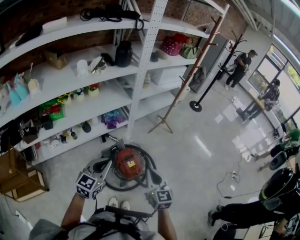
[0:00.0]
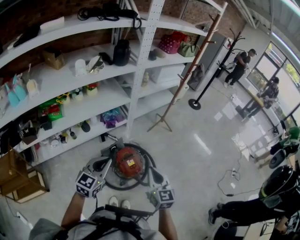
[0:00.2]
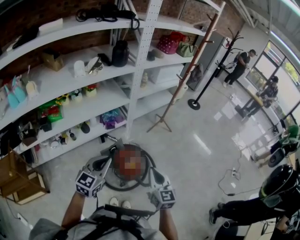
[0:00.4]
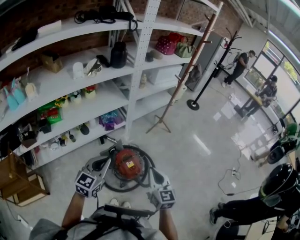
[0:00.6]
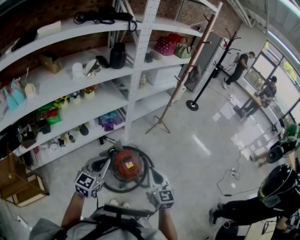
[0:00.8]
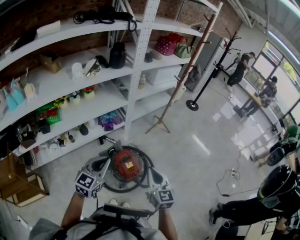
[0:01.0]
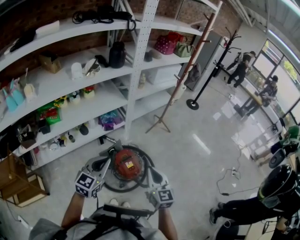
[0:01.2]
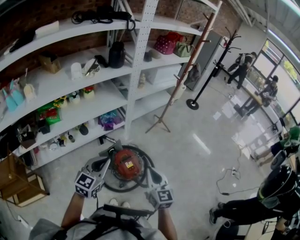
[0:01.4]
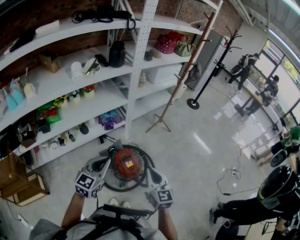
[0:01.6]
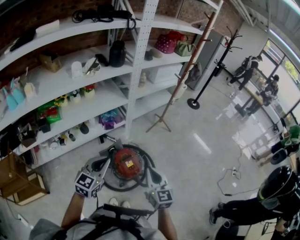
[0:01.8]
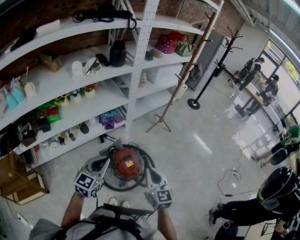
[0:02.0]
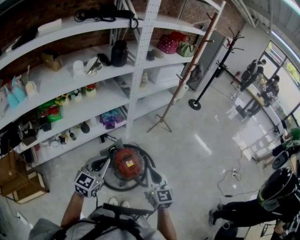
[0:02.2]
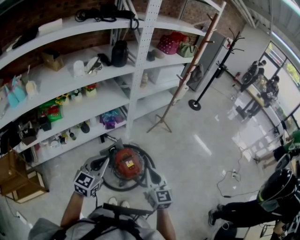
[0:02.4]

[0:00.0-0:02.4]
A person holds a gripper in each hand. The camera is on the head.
0:00.0 to 0:01.2: The grippers stay close to where they were, moving slightly.
0:01.2 to 0:02.4: Both grippers stay about where they are.

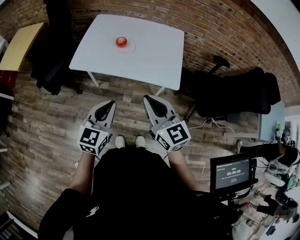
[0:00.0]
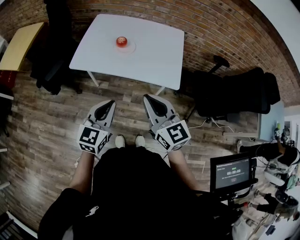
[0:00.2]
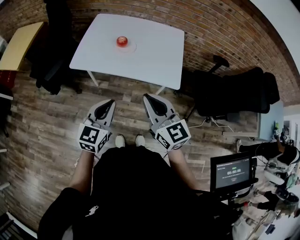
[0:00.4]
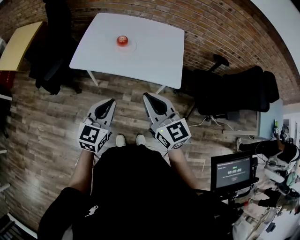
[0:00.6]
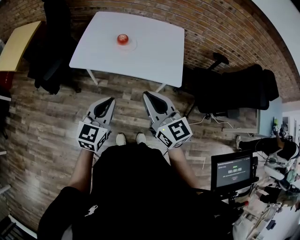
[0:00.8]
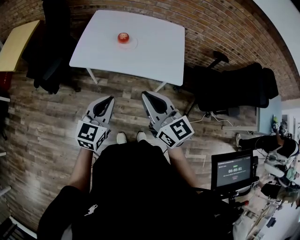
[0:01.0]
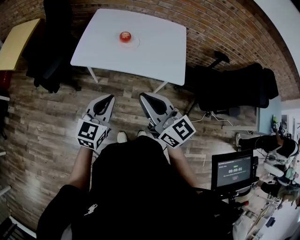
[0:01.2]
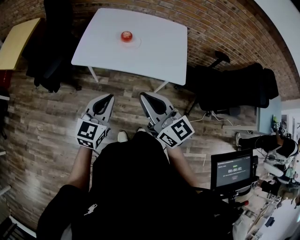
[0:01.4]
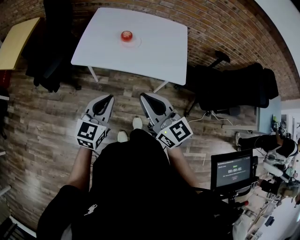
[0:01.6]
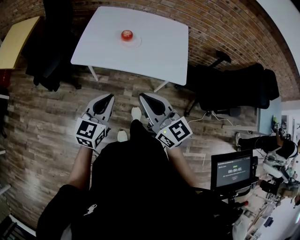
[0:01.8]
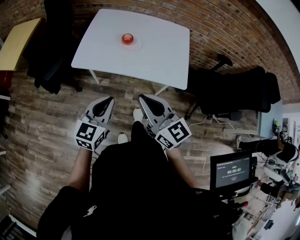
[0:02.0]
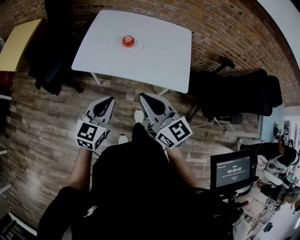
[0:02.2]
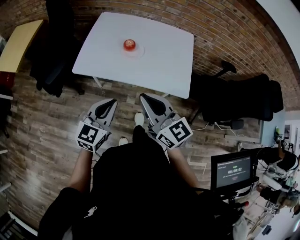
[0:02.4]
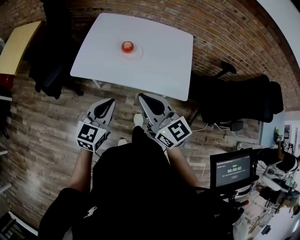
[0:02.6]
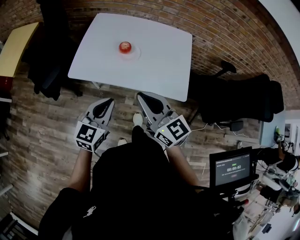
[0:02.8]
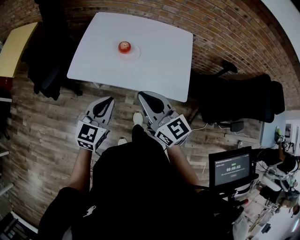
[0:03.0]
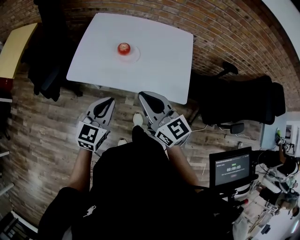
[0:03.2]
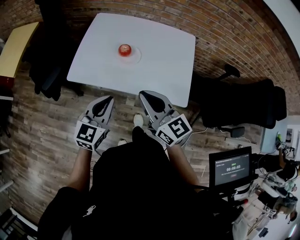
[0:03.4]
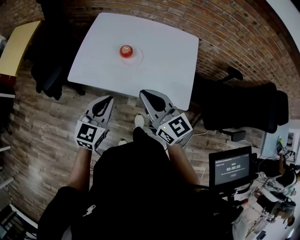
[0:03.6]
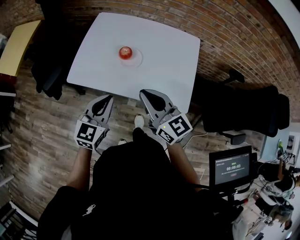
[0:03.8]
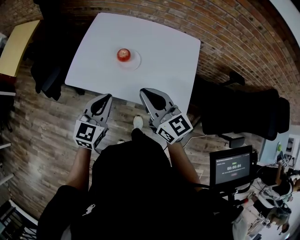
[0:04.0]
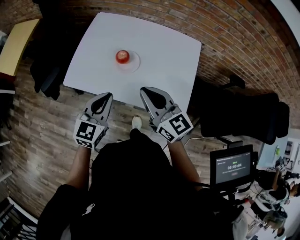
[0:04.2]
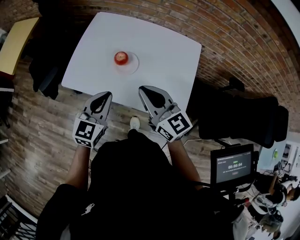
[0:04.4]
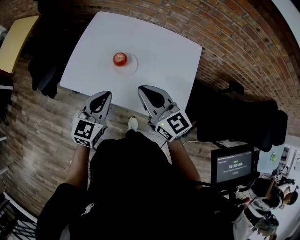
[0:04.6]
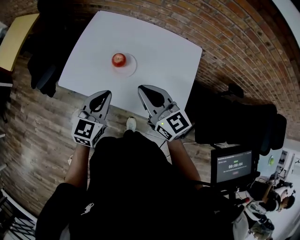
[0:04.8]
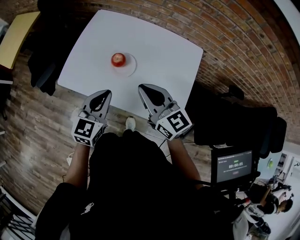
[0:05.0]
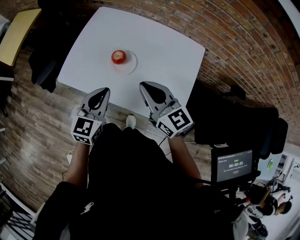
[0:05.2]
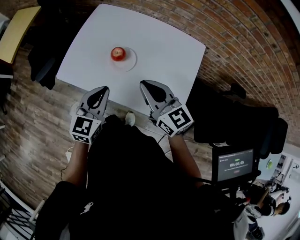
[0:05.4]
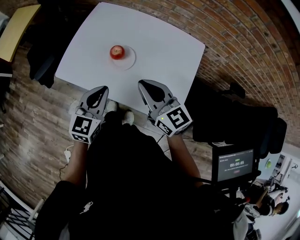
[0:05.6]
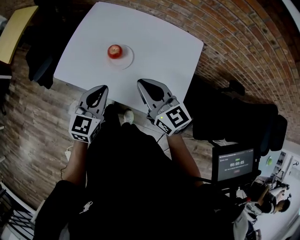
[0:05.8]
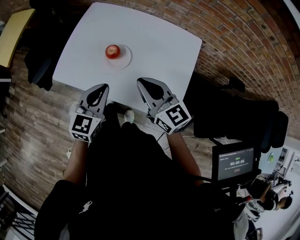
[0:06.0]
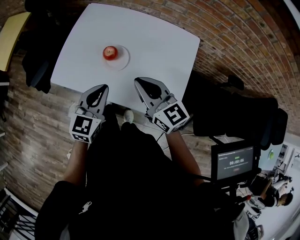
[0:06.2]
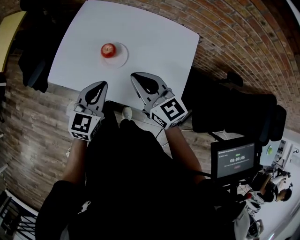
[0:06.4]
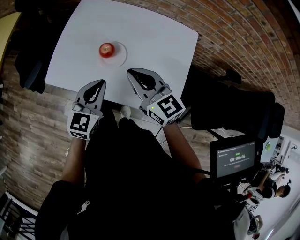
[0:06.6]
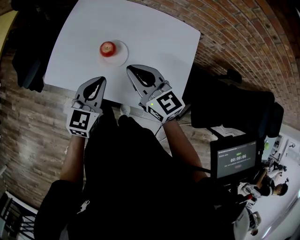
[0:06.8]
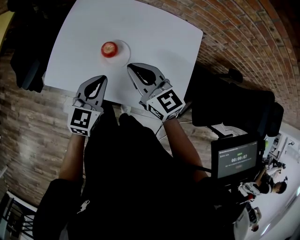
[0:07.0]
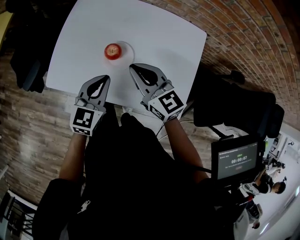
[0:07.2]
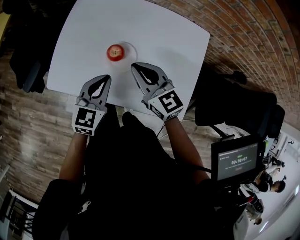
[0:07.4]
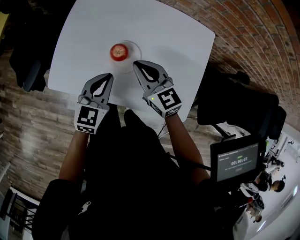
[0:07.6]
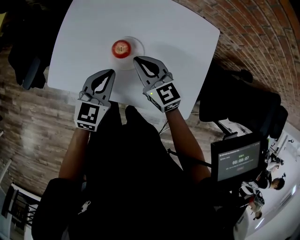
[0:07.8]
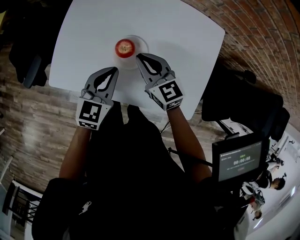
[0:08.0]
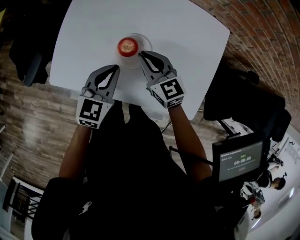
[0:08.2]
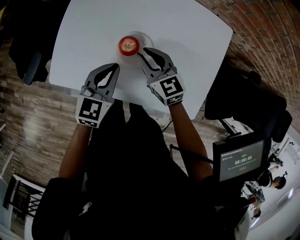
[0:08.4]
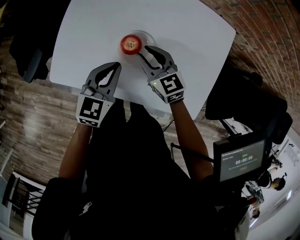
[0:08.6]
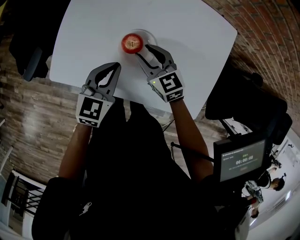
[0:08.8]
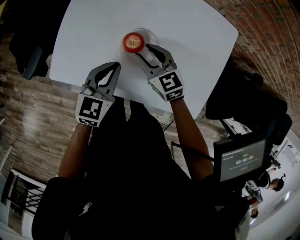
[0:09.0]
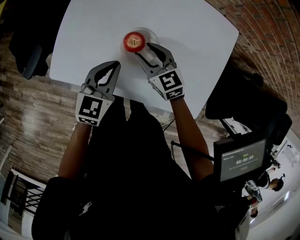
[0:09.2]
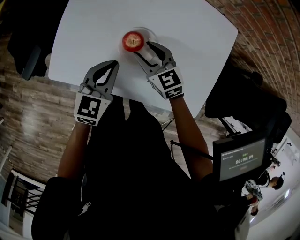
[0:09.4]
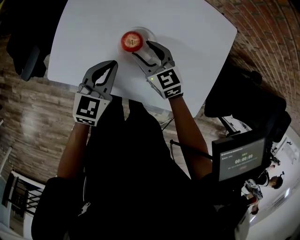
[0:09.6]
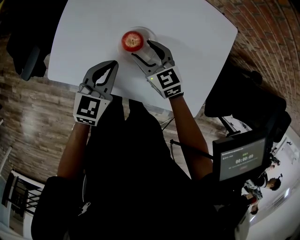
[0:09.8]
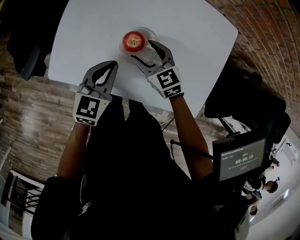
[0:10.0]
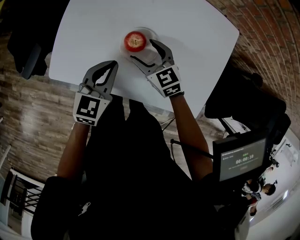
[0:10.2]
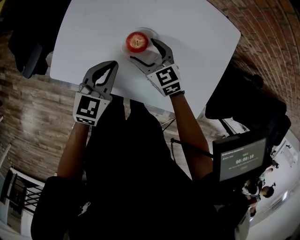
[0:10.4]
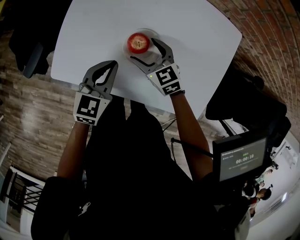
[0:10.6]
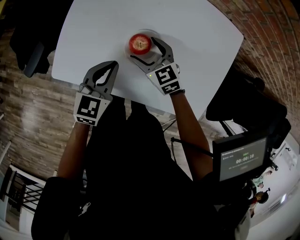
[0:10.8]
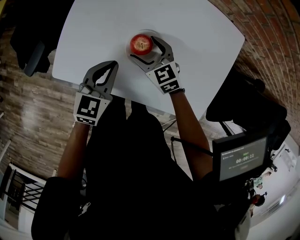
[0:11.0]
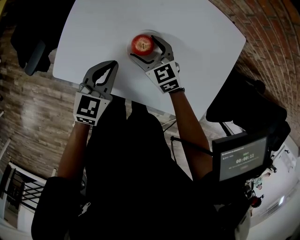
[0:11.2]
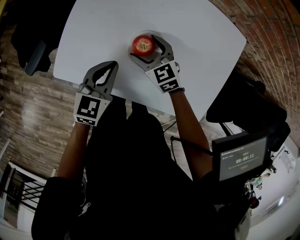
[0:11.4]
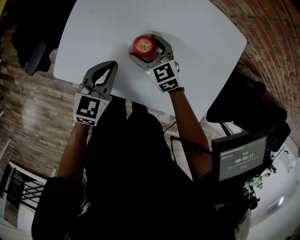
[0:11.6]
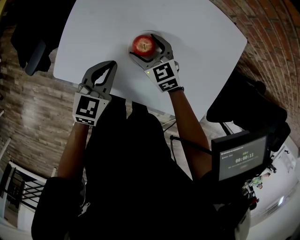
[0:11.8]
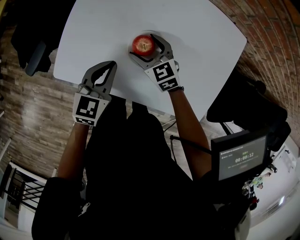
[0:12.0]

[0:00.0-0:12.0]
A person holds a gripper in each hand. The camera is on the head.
0:00.0 to 0:01.6: The two grippers go approximately 5 cm to the left.
0:01.6 to 0:03.0: Both grippers travel together forward, about 10 cm.
0:03.0 to 0:04.4: Both grippers travel together forward, approximately 10 cm.
0:04.4 to 0:06.0: The two grippers go some 10 cm to the right and forward.
0:06.0 to 0:07.6: The right gripper is displaced forward, downward and to the left by some 20 cm, while the left gripper goes approximately 15 cm forward and downward.
0:07.6 to 0:09.0: The left gripper shifts by some 5 cm, while the right gripper moves downward, roughly 10 cm, and opens.
0:09.0 to 0:10.4: The right gripper opens its fingers.
0:10.4 to 0:12.0: The grippers make only small movements.

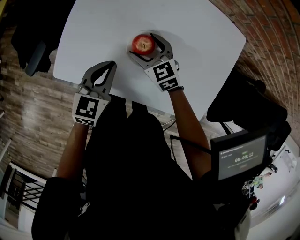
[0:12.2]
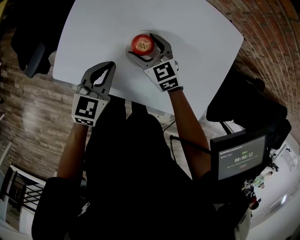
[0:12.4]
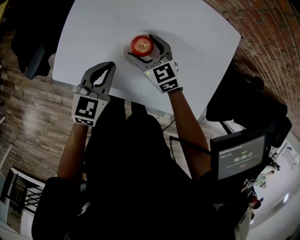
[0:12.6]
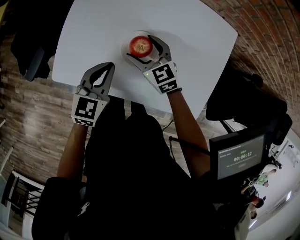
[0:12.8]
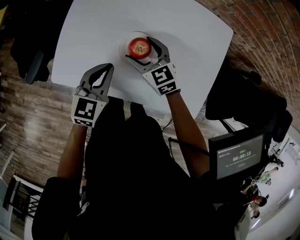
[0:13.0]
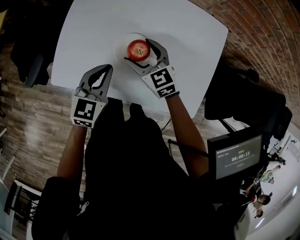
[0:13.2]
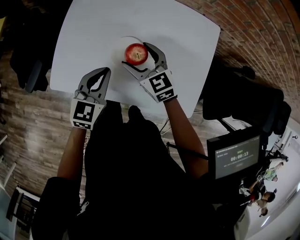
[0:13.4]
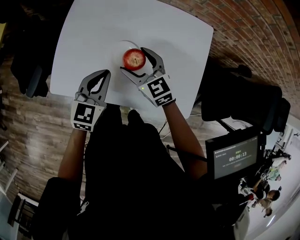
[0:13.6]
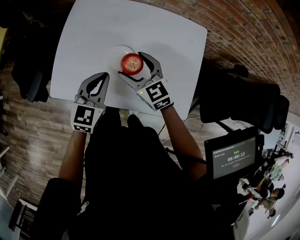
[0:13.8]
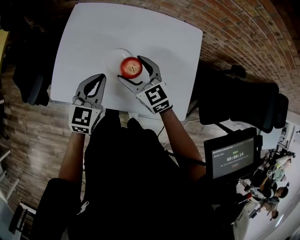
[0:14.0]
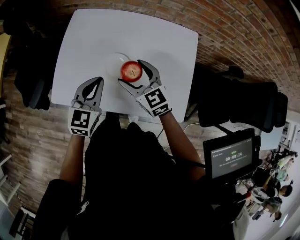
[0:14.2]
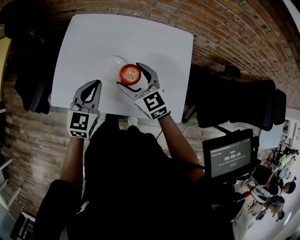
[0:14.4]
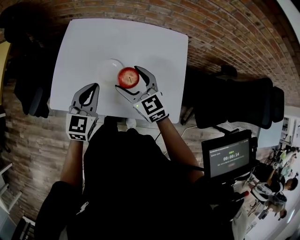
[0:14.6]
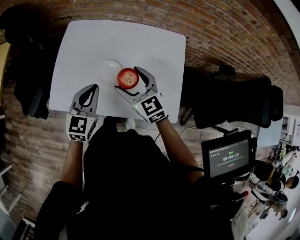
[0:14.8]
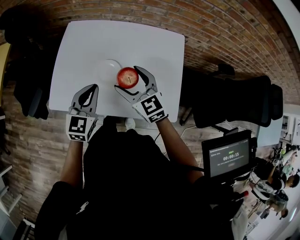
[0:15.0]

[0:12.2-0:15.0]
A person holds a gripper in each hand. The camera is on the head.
0:12.2 to 0:13.6: The right gripper is displaced upward by roughly 10 cm. The left gripper travels upward and to the right by approximately 10 cm.
0:13.6 to 0:15.0: The right gripper goes some 10 cm upward, backward and to the right. Meanwhile the left gripper travels upward by roughly 5 cm.

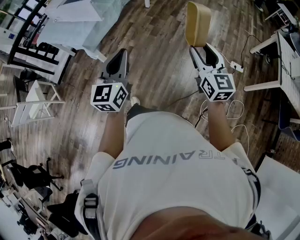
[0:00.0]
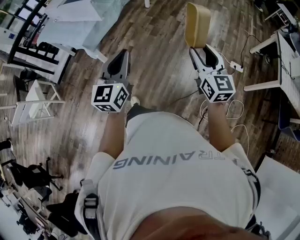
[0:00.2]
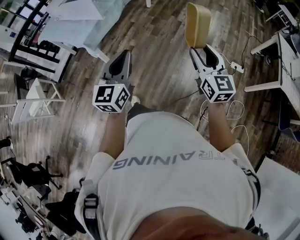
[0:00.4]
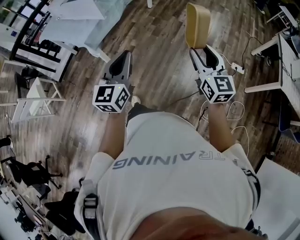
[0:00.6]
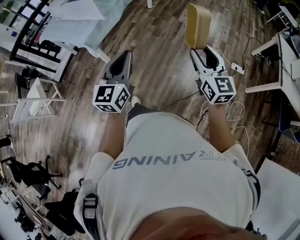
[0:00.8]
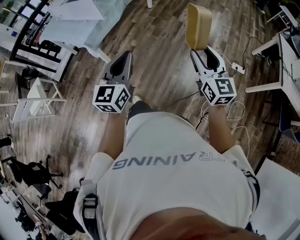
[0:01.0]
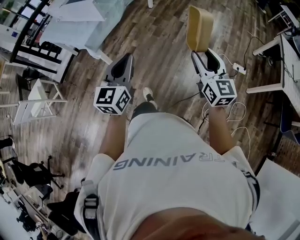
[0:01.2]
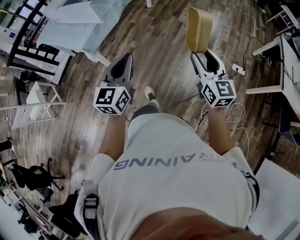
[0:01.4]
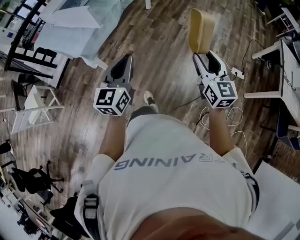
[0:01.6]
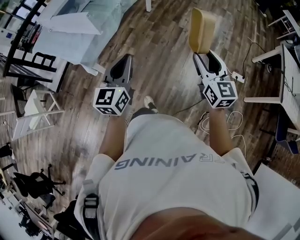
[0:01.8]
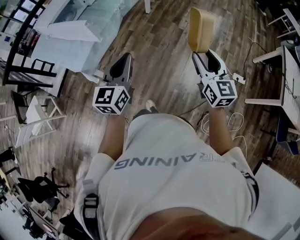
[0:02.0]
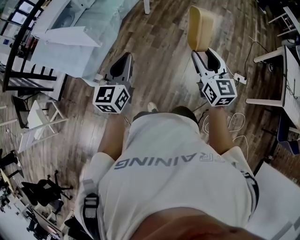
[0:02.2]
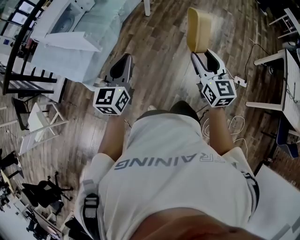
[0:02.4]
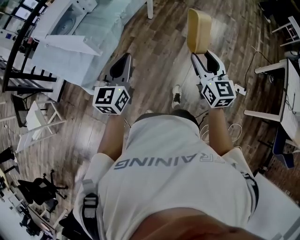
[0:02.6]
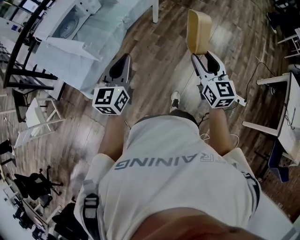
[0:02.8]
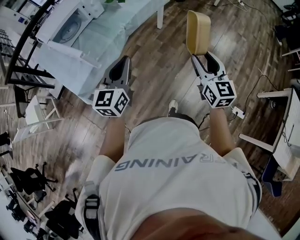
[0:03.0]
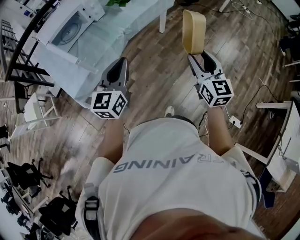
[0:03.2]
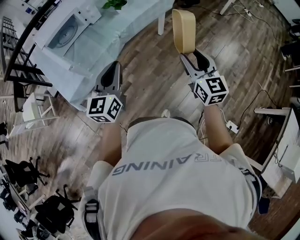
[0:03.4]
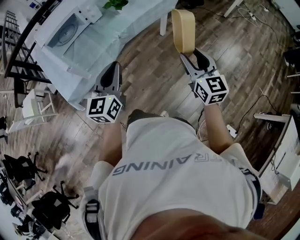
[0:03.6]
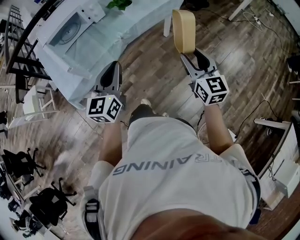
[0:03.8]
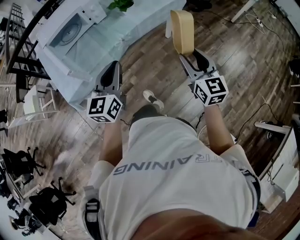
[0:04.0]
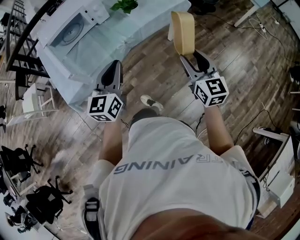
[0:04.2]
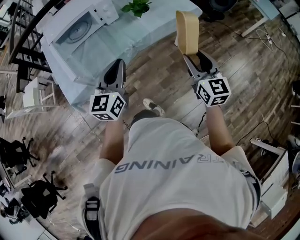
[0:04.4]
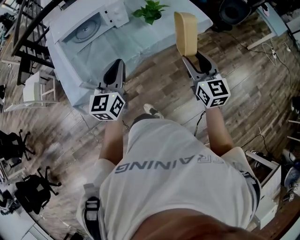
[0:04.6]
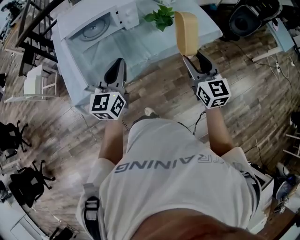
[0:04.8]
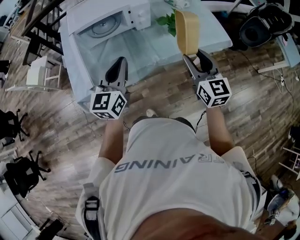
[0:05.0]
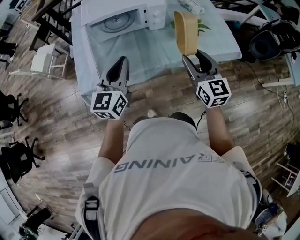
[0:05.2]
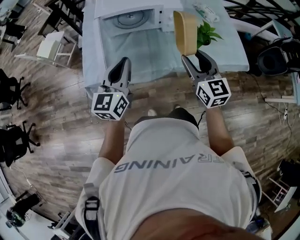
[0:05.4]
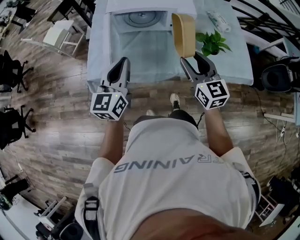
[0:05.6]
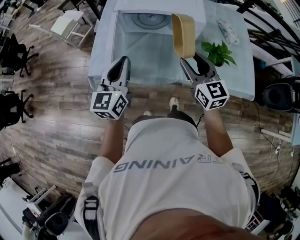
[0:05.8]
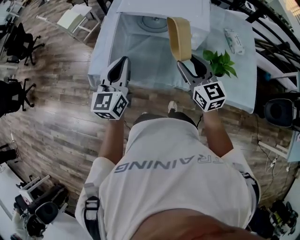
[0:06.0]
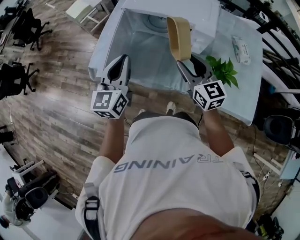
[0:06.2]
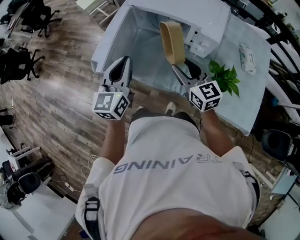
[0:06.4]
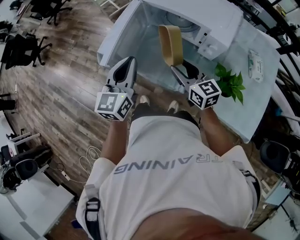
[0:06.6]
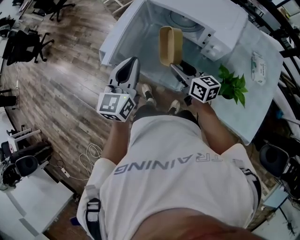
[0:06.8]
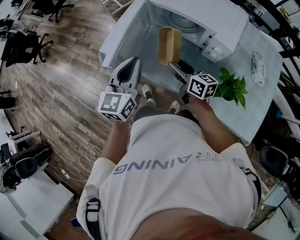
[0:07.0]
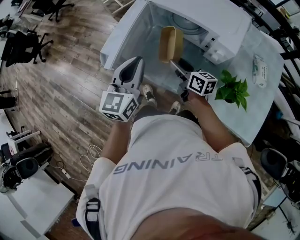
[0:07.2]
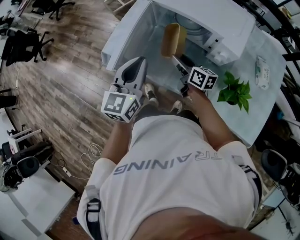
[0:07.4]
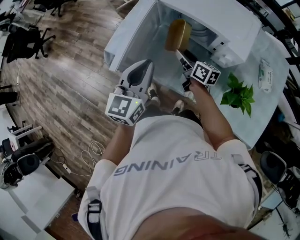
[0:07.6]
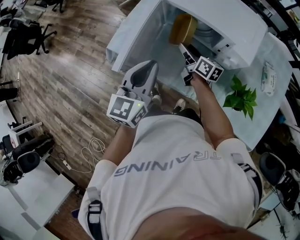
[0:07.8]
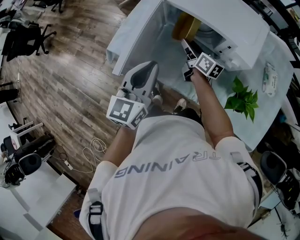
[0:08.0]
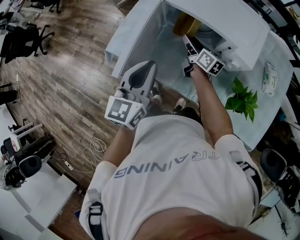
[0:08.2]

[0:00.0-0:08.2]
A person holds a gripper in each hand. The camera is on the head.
0:00.0 to 0:01.6: Both grippers travel together forward, about 10 cm.
0:01.6 to 0:03.2: The pair of grippers is taken forward, some 40 cm.
0:03.2 to 0:05.0: The right gripper ends up roughly 40 cm from where it was, and turns by roughly 30 degrees; the left gripper shifts by approximately 30 cm, and changes its angle by some 30 degrees.
0:05.0 to 0:06.6: The left gripper moves about 5 cm, and turns by approximately 50 degrees. Meanwhile the right gripper changes place by some 25 cm, and changes its angle by approximately 60 degrees.
0:06.6 to 0:08.2: The left gripper is displaced forward by some 5 cm, while the right gripper heads forward and downward, covering about 25 cm, and changes its angle by about 40 degrees.
